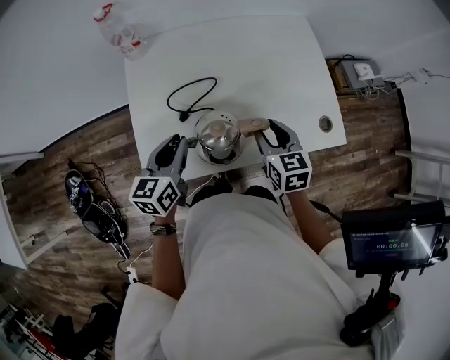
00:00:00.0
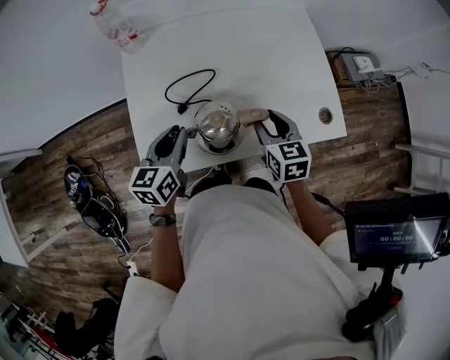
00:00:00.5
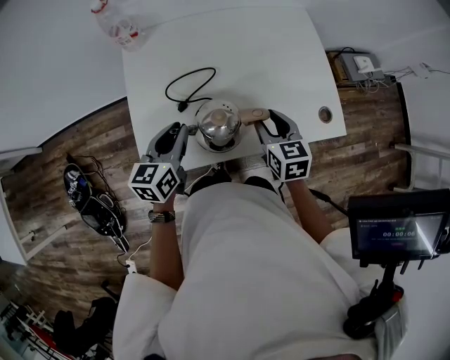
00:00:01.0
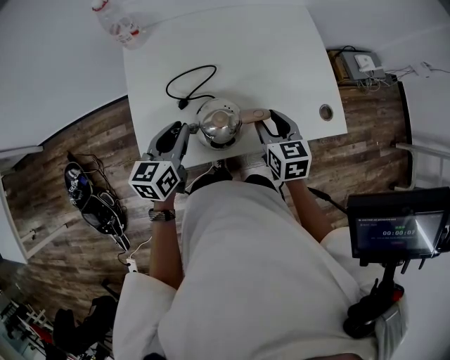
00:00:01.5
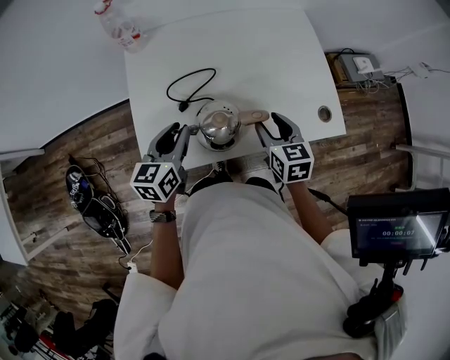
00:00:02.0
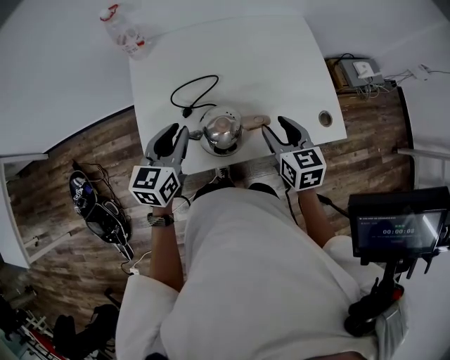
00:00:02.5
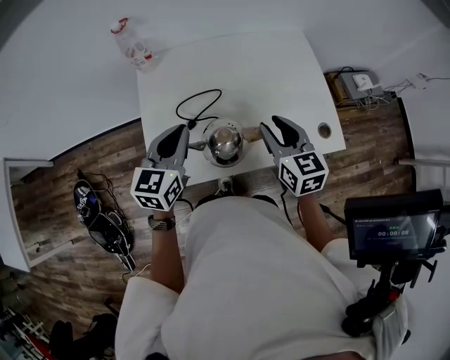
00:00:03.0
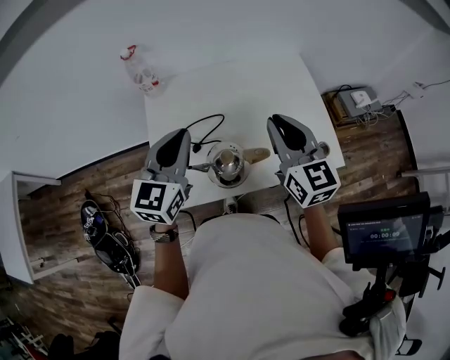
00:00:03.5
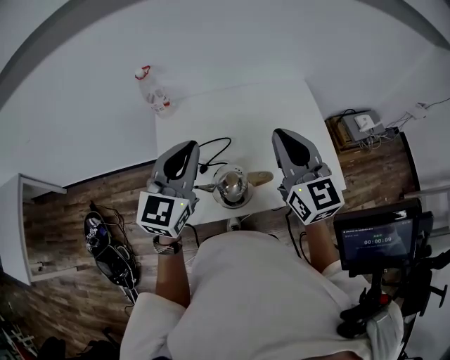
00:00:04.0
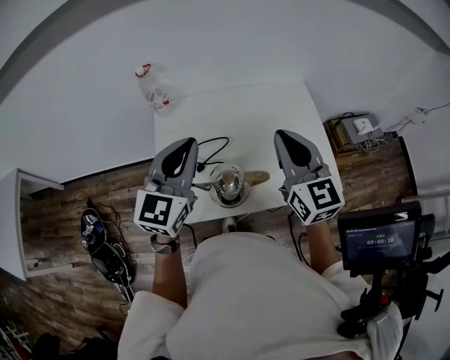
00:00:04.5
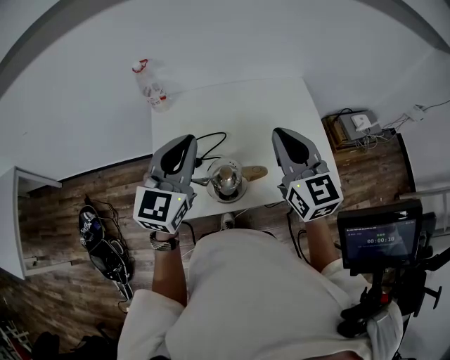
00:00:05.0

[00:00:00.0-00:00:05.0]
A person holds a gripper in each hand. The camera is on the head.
00:00:00.0 to 00:00:02.5: The grippers make only small movements.
00:00:02.5 to 00:00:05.0: The two grippers go some 20 cm upward. The right gripper turns by about 30 degrees, and closes its fingers. Meanwhile the left gripper changes its angle by some 30 degrees, and closes.

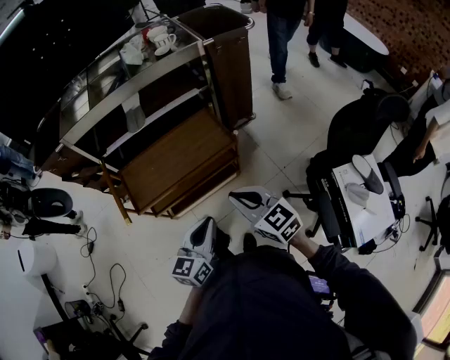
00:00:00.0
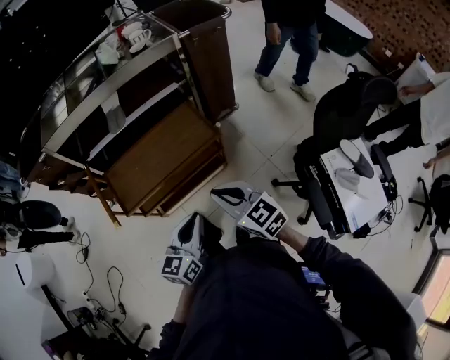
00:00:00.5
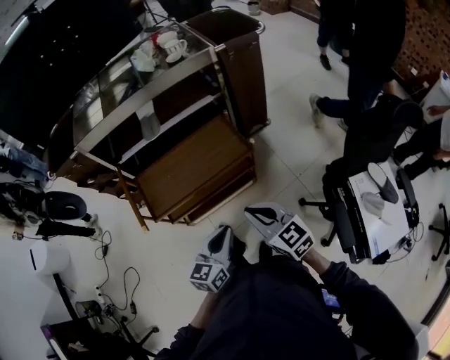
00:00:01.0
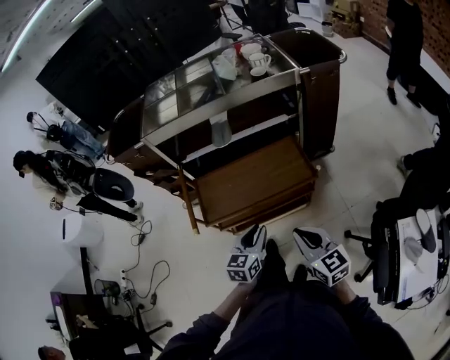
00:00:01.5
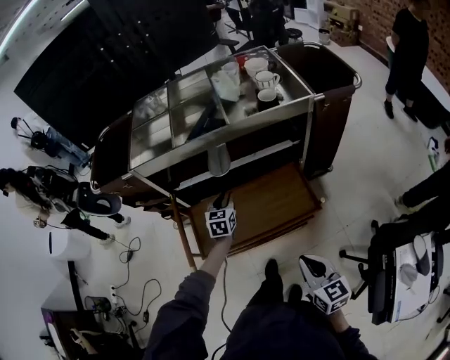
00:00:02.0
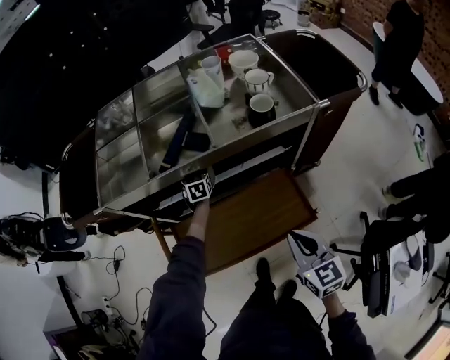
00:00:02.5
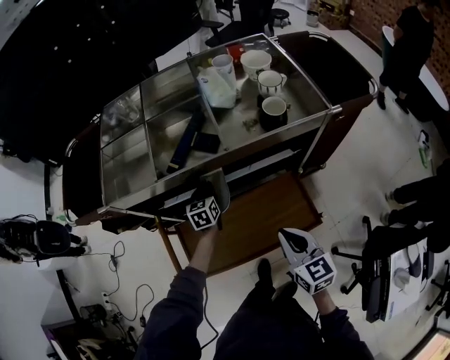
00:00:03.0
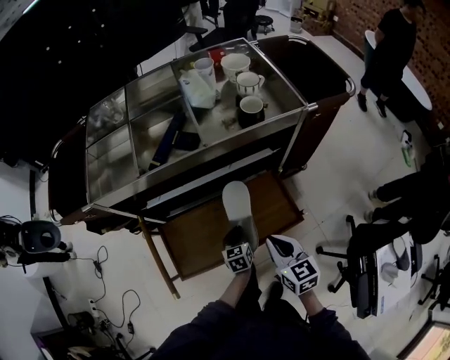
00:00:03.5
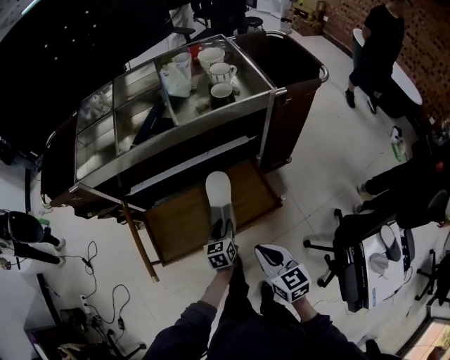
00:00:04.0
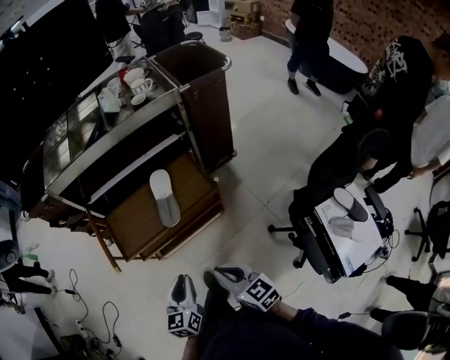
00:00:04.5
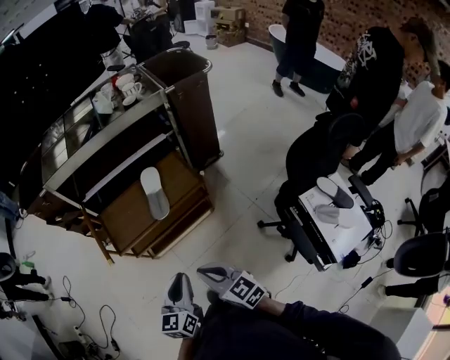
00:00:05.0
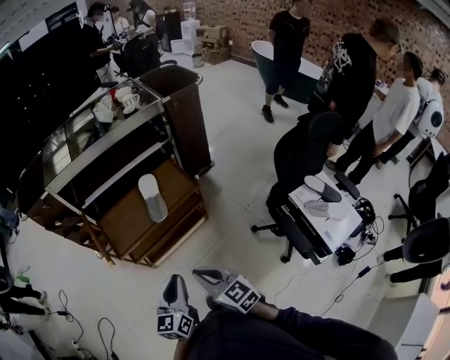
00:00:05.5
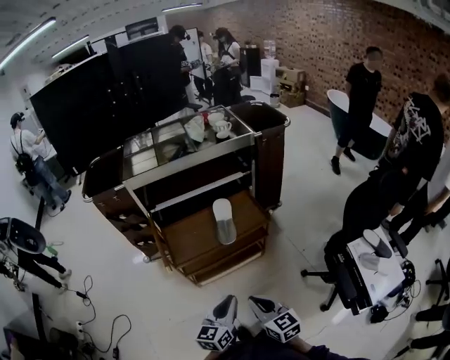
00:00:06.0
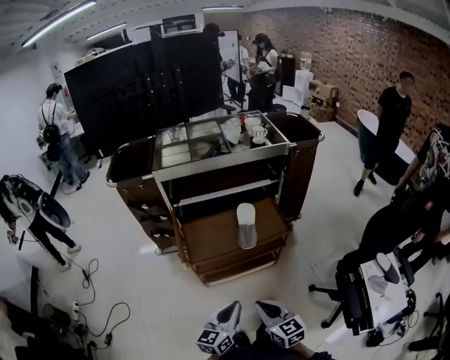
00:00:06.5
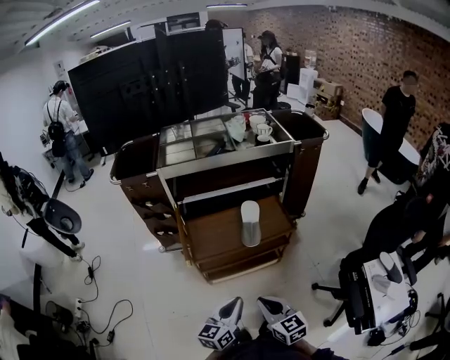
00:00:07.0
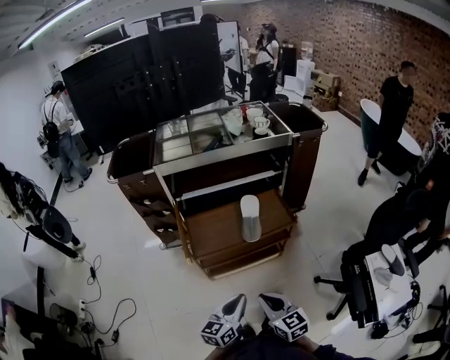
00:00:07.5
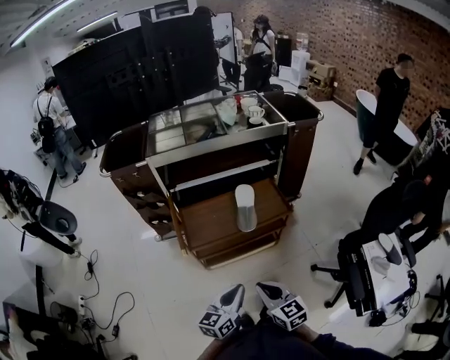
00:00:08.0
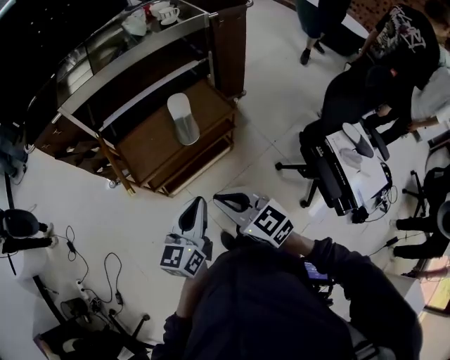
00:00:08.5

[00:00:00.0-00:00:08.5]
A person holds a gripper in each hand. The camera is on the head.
00:00:00.0 to 00:00:02.0: The left gripper goes approximately 40 cm forward, swivels some 30 degrees, and opens. Meanwhile the right gripper shifts about 10 cm forward.
00:00:02.0 to 00:00:04.0: The left gripper travels to the right and downward by some 15 cm, reaches approximately 25 cm forward, then returns, and closes, then reopens. The right gripper travels forward and back again, approximately 25 cm each way.
00:00:04.0 to 00:00:06.5: The left gripper is displaced backward and upward by about 50 cm, rotates approximately 30 degrees, and closes its fingers, while the right gripper is displaced backward and to the left by some 35 cm.
00:00:06.5 to 00:00:08.5: The left gripper ends up about 5 cm from where it was.

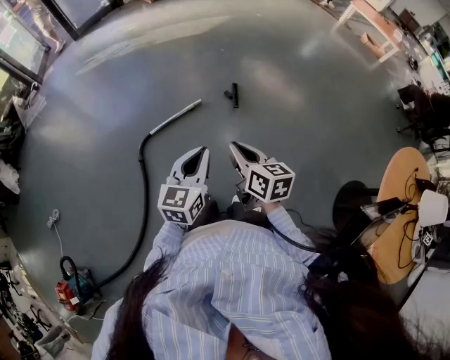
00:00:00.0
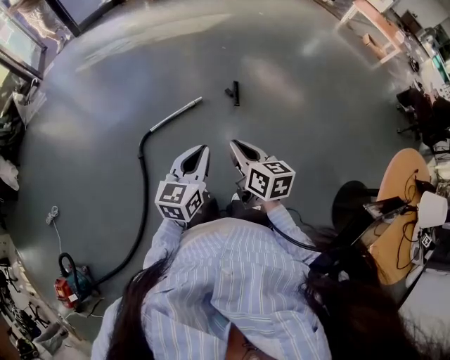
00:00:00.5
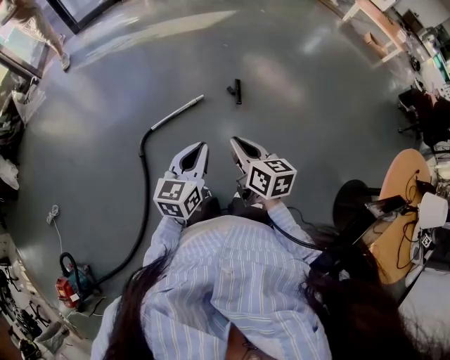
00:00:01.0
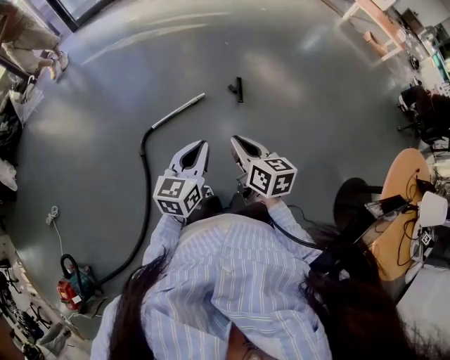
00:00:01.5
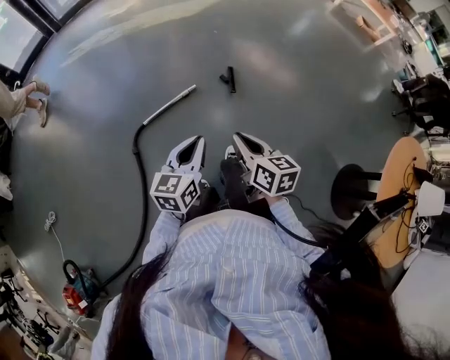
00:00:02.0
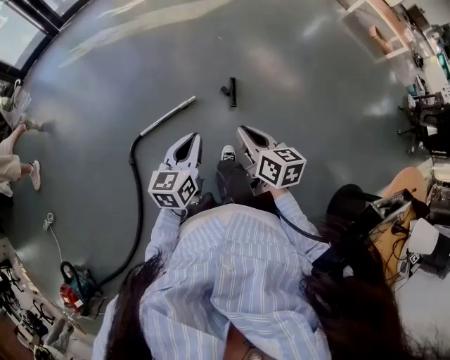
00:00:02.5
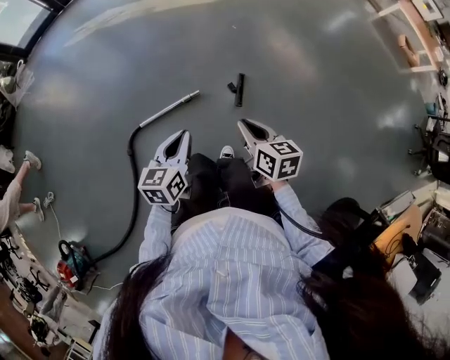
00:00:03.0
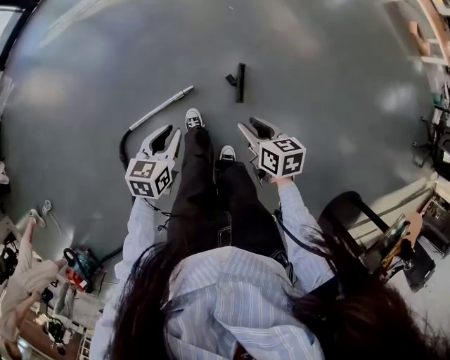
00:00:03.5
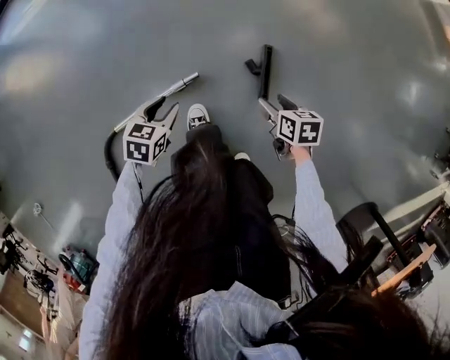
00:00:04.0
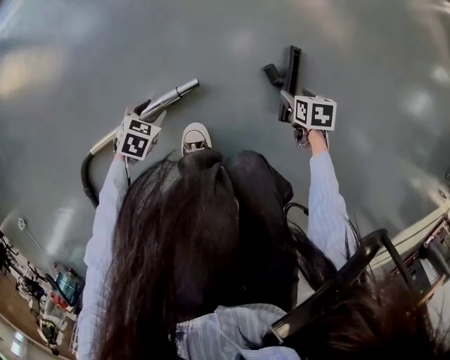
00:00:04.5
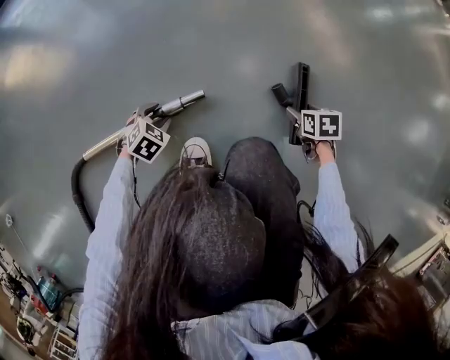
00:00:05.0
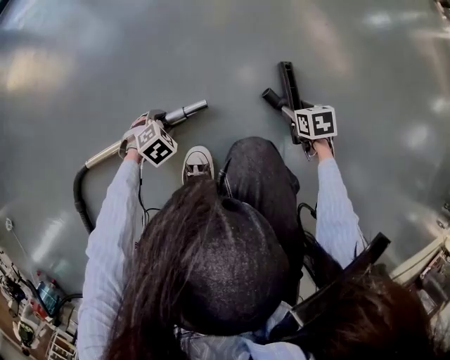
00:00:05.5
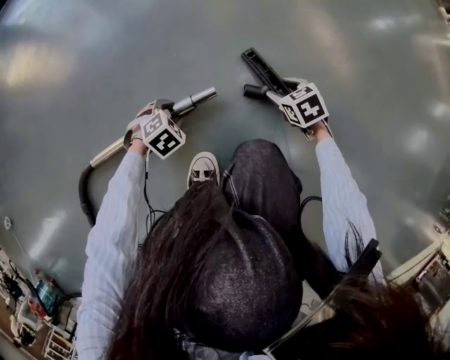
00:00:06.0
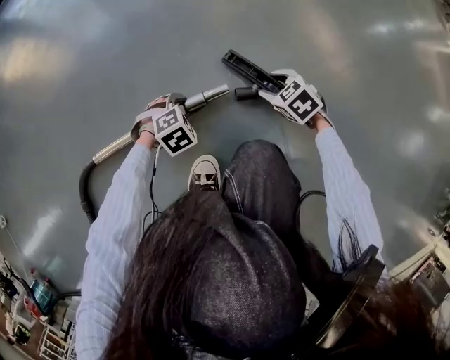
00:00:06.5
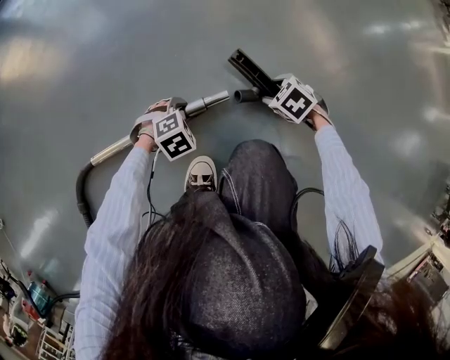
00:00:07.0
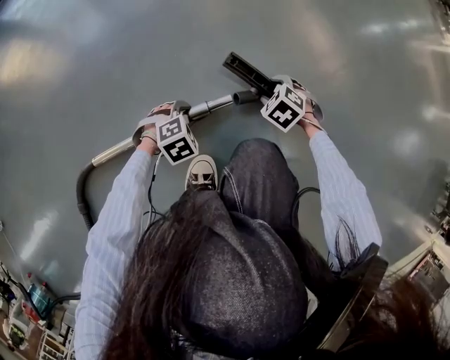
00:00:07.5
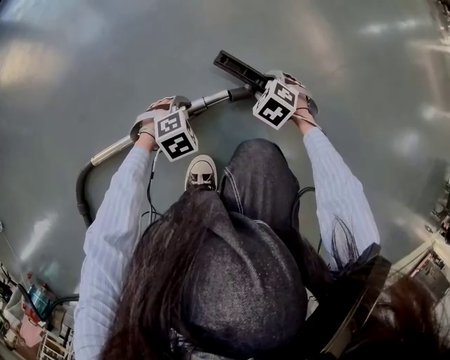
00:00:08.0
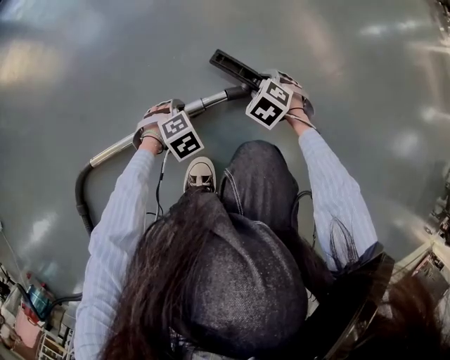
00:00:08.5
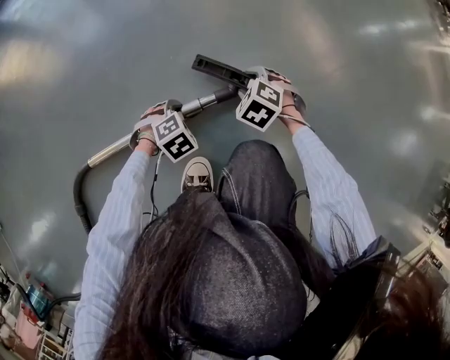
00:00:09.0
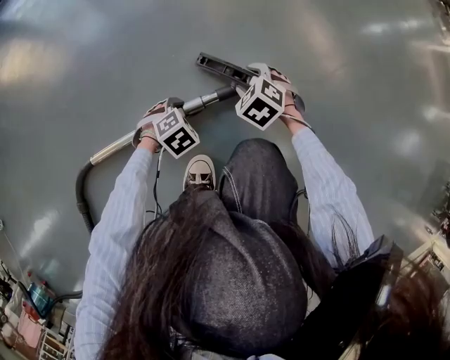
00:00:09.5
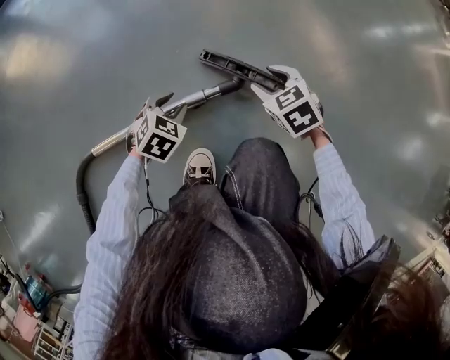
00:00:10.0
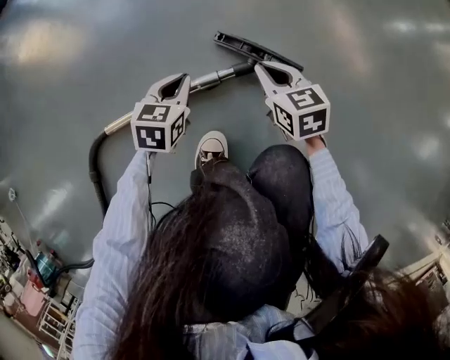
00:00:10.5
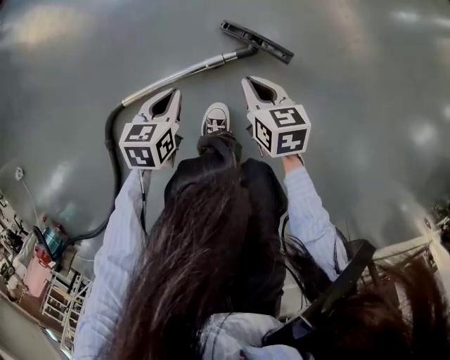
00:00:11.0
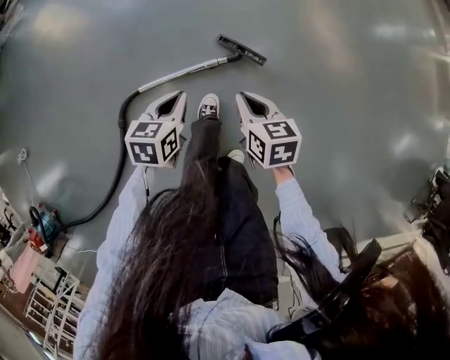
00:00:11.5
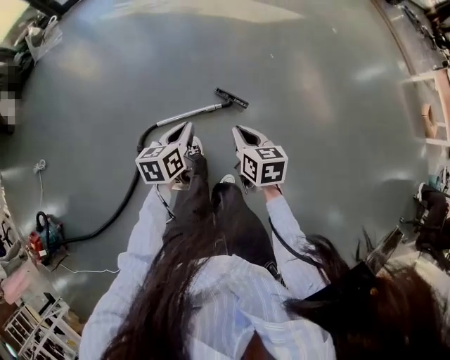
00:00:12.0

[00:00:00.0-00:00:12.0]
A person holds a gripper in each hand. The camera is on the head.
00:00:00.0 to 00:00:02.0: The right gripper shifts by about 5 cm. The left gripper is displaced forward by about 5 cm.
00:00:02.0 to 00:00:04.0: The pair of grippers is taken forward, about 50 cm. The grippers both shift downward by approximately 60 cm. The left gripper angles its fingers downward, by about 40 degrees, and opens up; the right gripper angles its fingers downward, by some 30 degrees, and opens up.
00:00:04.0 to 00:00:06.0: The grippers both shift downward by roughly 35 cm. The left gripper rotates approximately 40 degrees. The right gripper twists approximately 40 degrees counterclockwise, seen from behind.
00:00:06.0 to 00:00:08.0: The right gripper swivels some 30 degrees; the left gripper shifts by approximately 5 cm.
00:00:08.0 to 00:00:10.0: The right gripper goes about 10 cm upward, and swivels some 30 degrees, while the left gripper shifts about 5 cm upward, and rotates approximately 30 degrees.
00:00:10.0 to 00:00:12.0: Both grippers move upward, approximately 70 cm. The right gripper swivels about 40 degrees, and closes its fingers. Meanwhile the left gripper twists approximately 50 degrees counterclockwise, seen from behind, and closes.

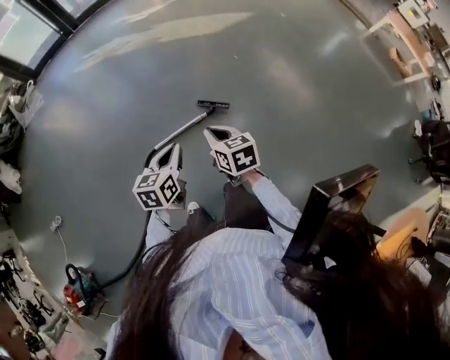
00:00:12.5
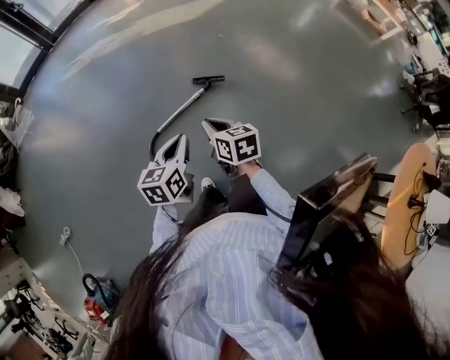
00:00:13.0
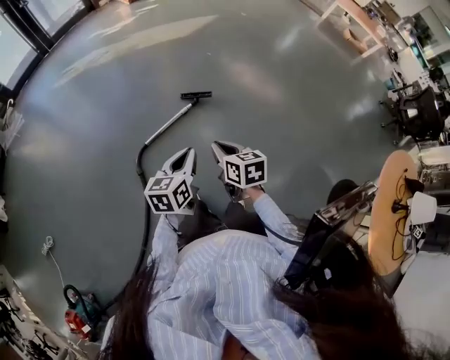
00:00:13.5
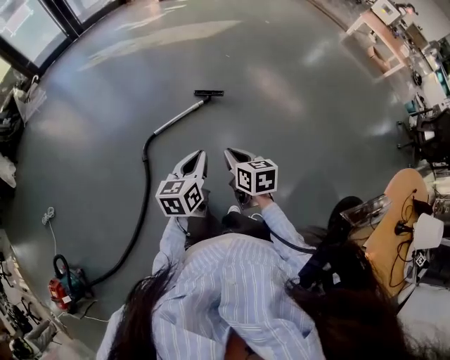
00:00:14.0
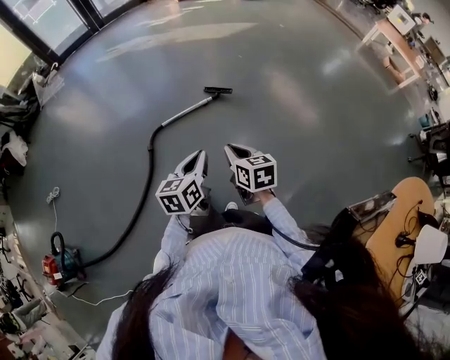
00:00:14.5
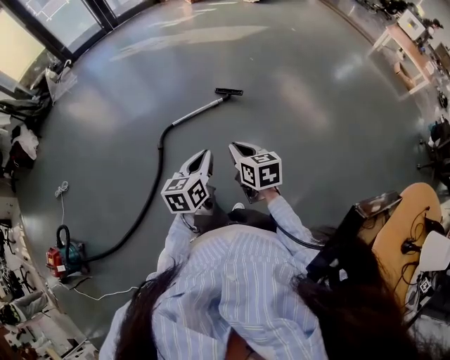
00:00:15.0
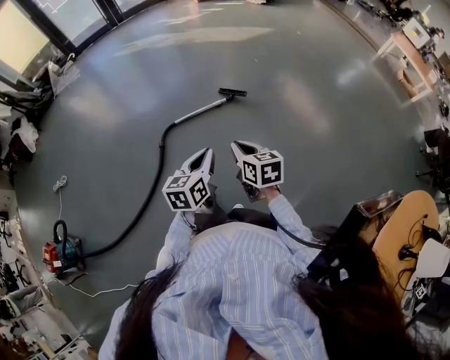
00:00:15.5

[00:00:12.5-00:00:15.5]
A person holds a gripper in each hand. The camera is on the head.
00:00:12.5 to 00:00:14.0: The two grippers go some 30 cm backward.
00:00:14.0 to 00:00:15.5: The right gripper goes about 5 cm backward. Meanwhile the left gripper heads backward, covering approximately 10 cm.
